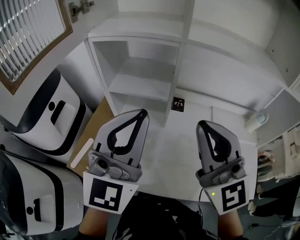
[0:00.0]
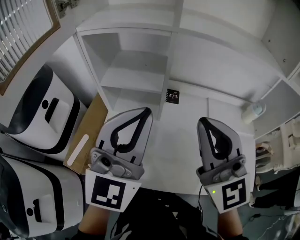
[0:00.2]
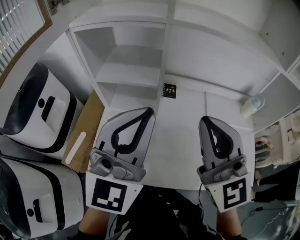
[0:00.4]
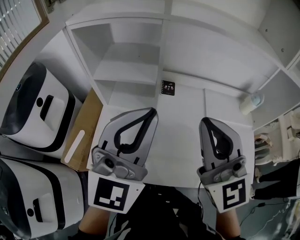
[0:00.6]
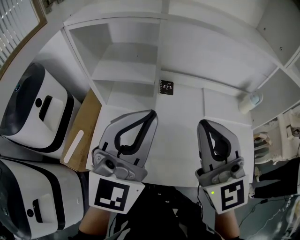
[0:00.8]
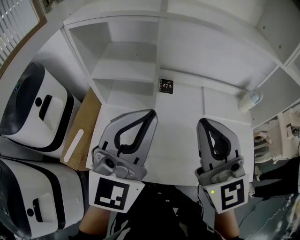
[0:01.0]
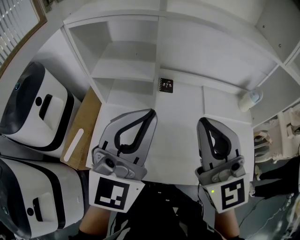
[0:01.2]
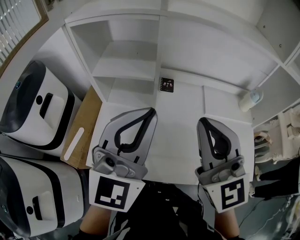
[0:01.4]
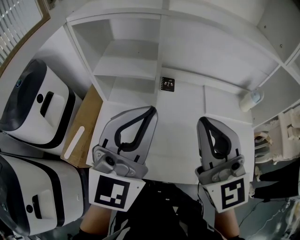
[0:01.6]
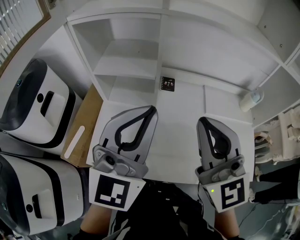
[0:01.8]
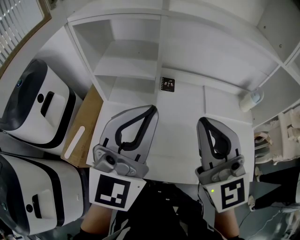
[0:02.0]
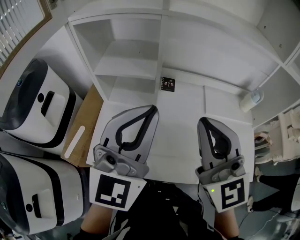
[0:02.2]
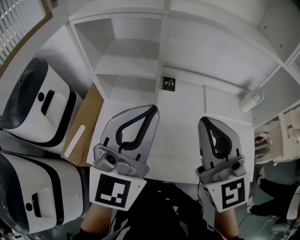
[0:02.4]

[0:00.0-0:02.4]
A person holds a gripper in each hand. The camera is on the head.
0:00.0 to 0:01.2: The right gripper changes place by approximately 5 cm. The left gripper is displaced to the right by about 5 cm.
0:01.2 to 0:02.4: The two grippers keep their place.

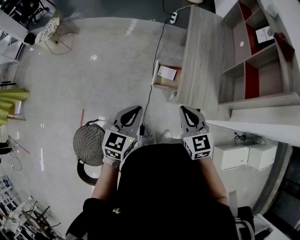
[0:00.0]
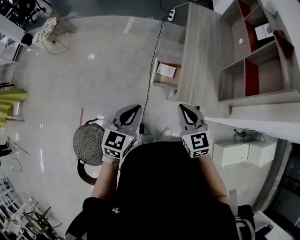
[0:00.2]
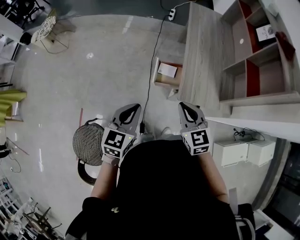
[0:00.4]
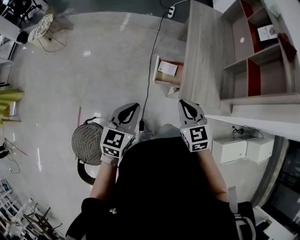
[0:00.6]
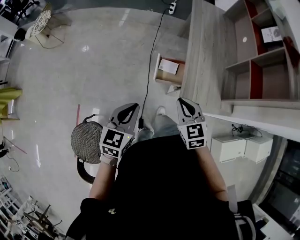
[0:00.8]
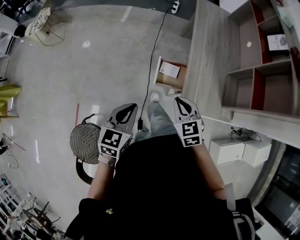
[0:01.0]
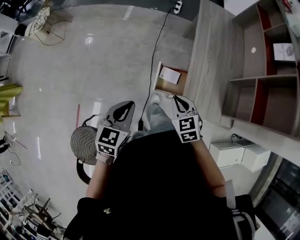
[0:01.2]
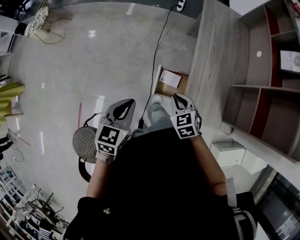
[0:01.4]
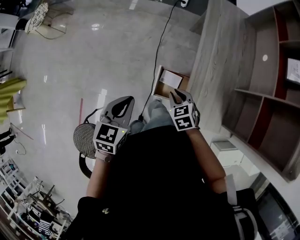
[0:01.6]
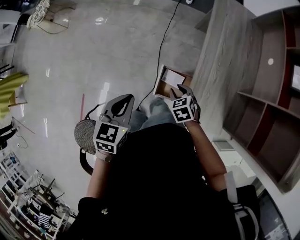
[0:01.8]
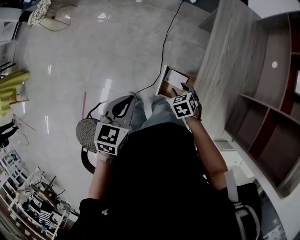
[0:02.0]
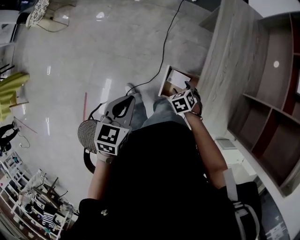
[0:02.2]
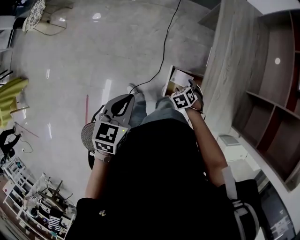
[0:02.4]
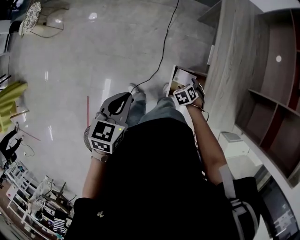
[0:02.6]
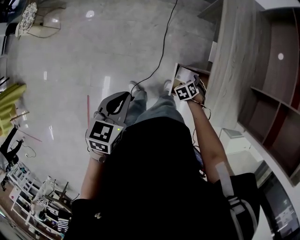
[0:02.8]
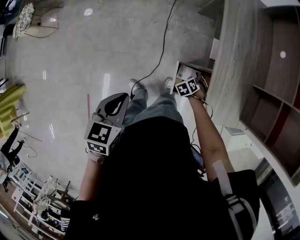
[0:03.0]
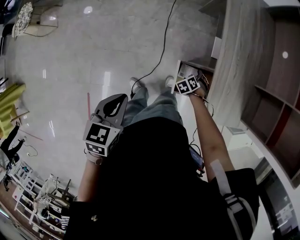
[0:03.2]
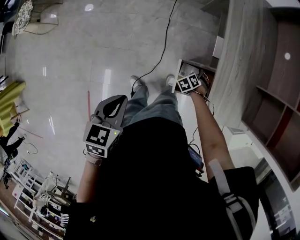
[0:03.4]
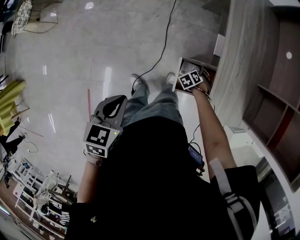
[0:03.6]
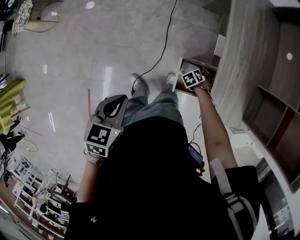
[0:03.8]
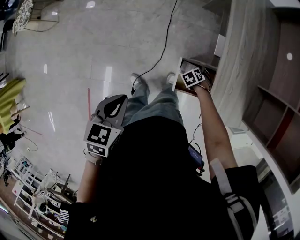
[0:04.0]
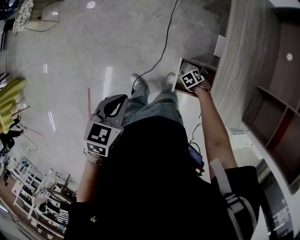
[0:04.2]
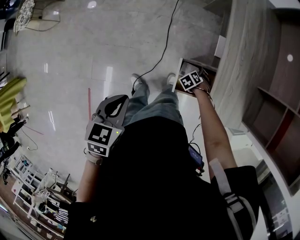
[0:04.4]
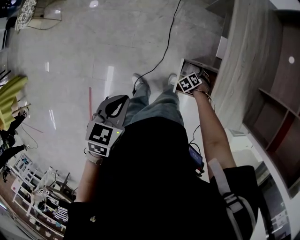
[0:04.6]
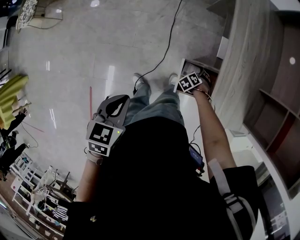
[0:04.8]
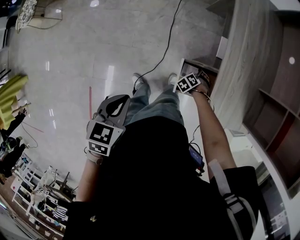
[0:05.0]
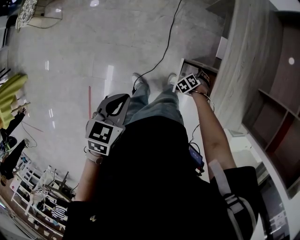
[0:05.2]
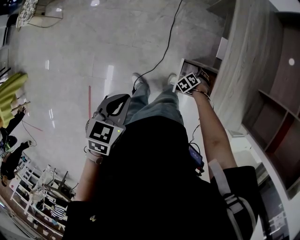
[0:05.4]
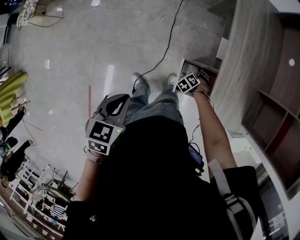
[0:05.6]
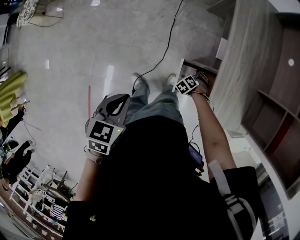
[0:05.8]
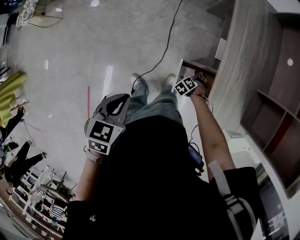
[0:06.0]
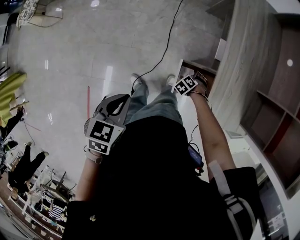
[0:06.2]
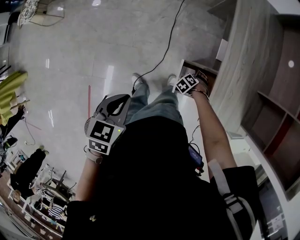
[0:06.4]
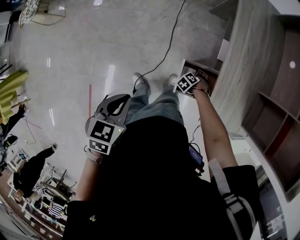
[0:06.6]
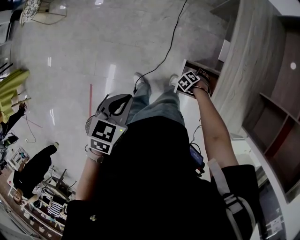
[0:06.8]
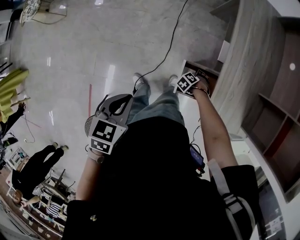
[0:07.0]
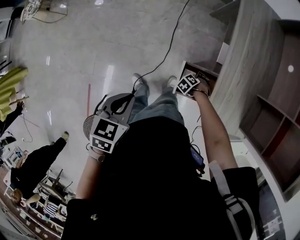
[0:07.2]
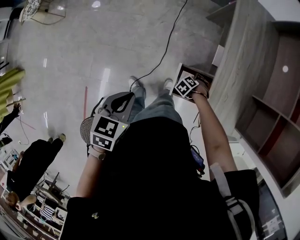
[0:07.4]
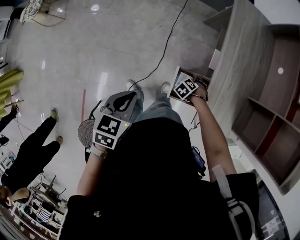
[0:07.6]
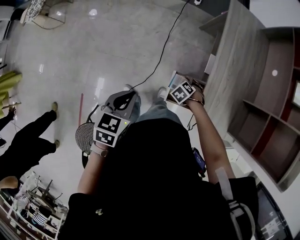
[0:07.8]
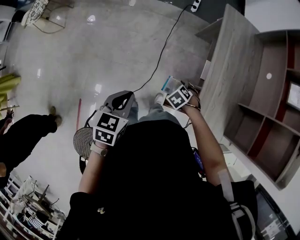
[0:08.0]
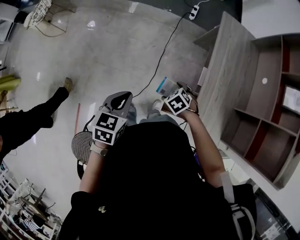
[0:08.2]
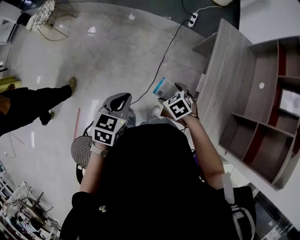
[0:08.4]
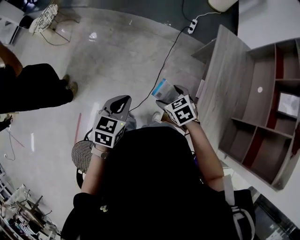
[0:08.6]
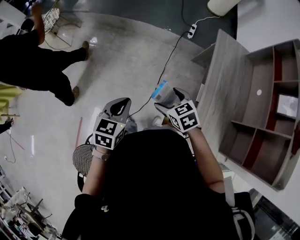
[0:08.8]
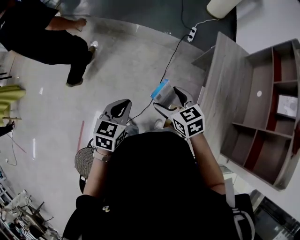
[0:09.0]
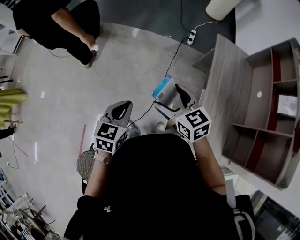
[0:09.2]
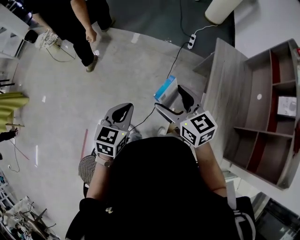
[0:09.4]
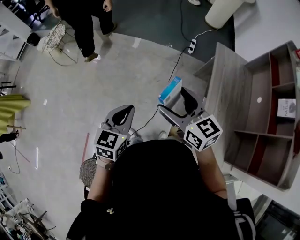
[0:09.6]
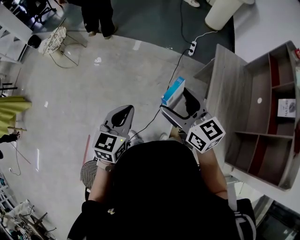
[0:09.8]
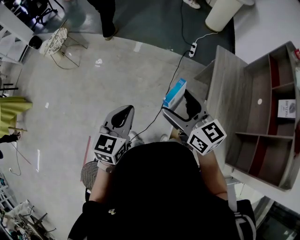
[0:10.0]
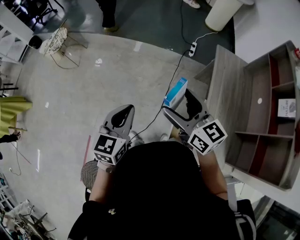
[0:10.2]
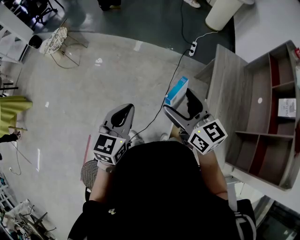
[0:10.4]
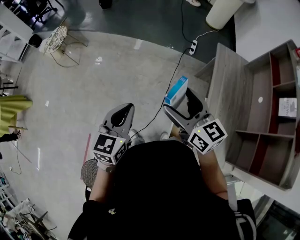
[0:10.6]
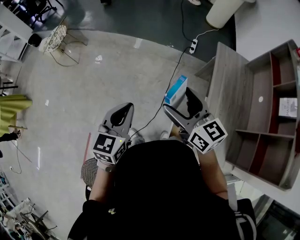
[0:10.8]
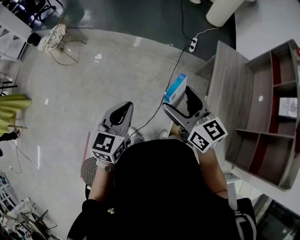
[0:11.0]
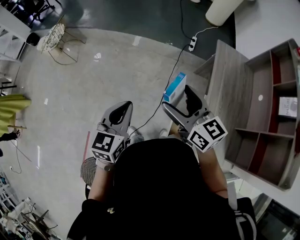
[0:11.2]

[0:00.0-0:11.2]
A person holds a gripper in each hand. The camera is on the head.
0:00.0 to 0:01.6: The left gripper travels forward by approximately 25 cm; the right gripper is displaced forward and downward by roughly 35 cm, and tips its fingers downward by about 30 degrees.
0:01.6 to 0:03.2: The right gripper moves downward, about 25 cm, swivels about 40 degrees, and opens up. The left gripper ends up about 15 cm from where it was.
0:03.2 to 0:04.8: The grippers make only small movements.
0:04.8 to 0:06.4: The grippers move only a little.
0:06.4 to 0:08.0: The right gripper is displaced upward by some 20 cm.
0:08.0 to 0:09.6: The left gripper moves upward, approximately 15 cm, while the right gripper moves upward, roughly 40 cm, and tilts its fingers approximately 70 degrees upward.
0:09.6 to 0:11.2: There are only small adjustments of the grippers.

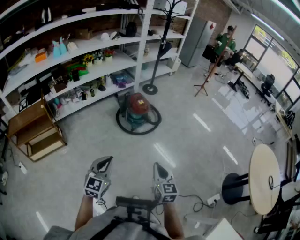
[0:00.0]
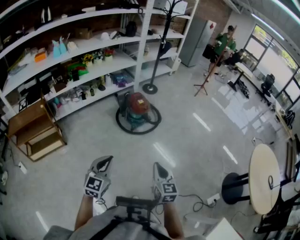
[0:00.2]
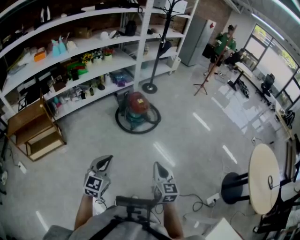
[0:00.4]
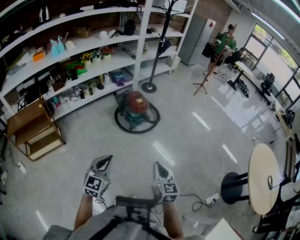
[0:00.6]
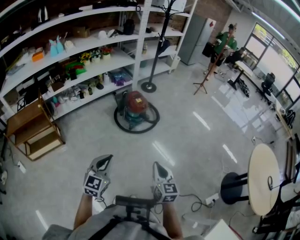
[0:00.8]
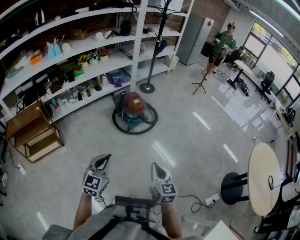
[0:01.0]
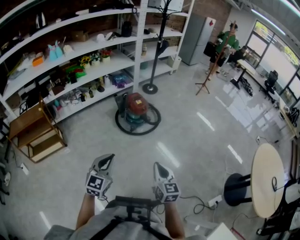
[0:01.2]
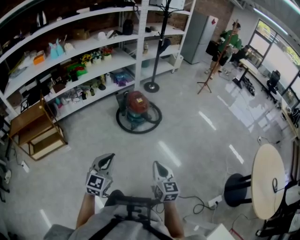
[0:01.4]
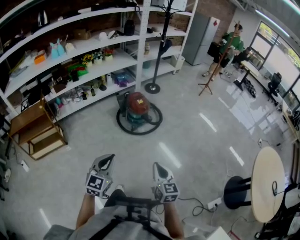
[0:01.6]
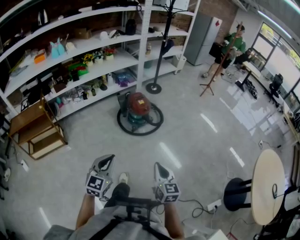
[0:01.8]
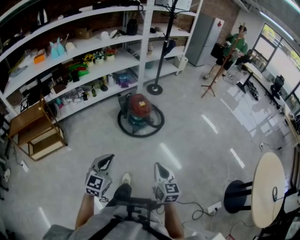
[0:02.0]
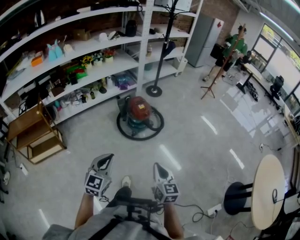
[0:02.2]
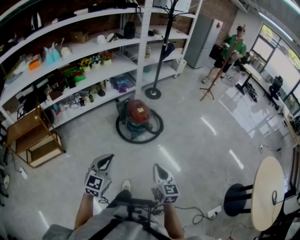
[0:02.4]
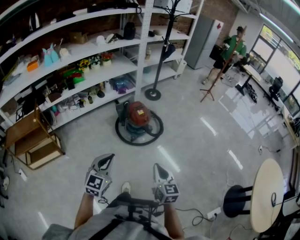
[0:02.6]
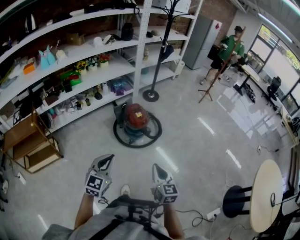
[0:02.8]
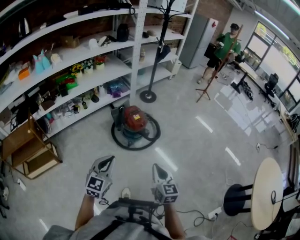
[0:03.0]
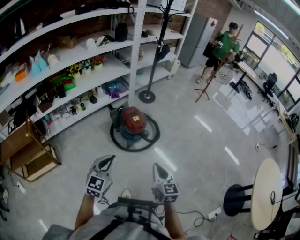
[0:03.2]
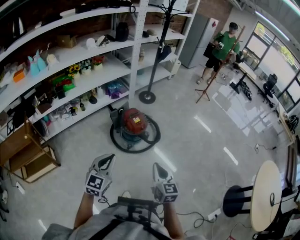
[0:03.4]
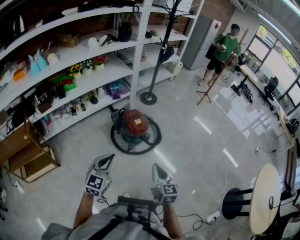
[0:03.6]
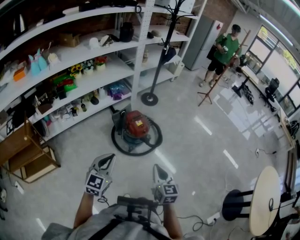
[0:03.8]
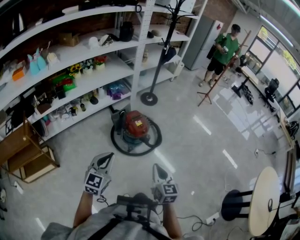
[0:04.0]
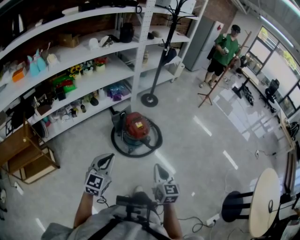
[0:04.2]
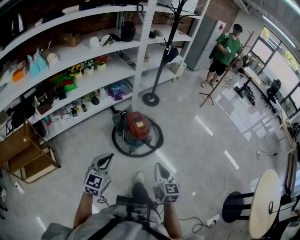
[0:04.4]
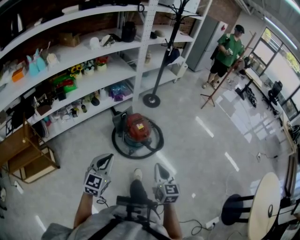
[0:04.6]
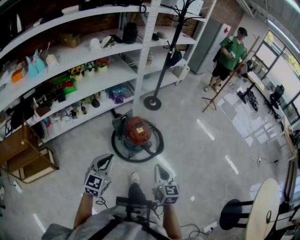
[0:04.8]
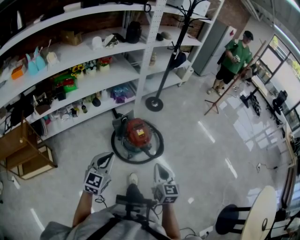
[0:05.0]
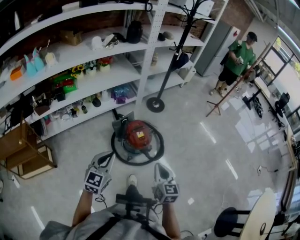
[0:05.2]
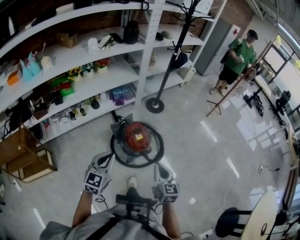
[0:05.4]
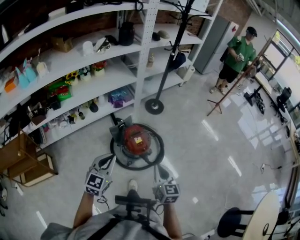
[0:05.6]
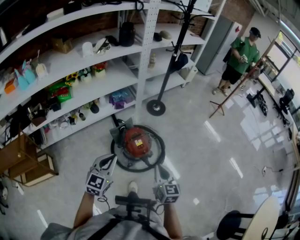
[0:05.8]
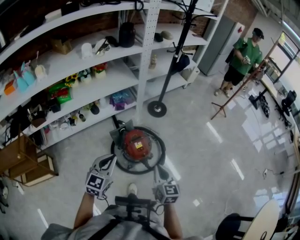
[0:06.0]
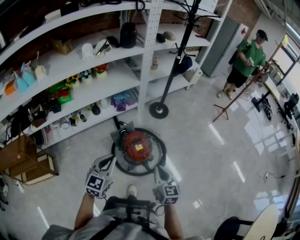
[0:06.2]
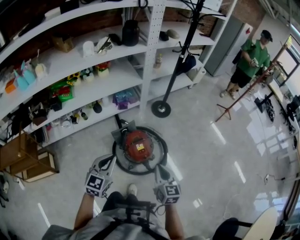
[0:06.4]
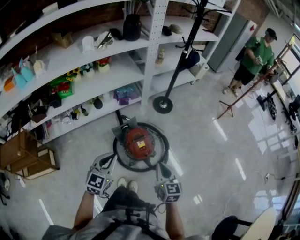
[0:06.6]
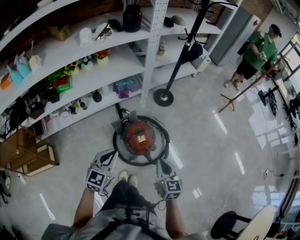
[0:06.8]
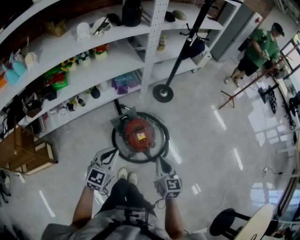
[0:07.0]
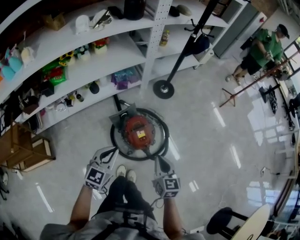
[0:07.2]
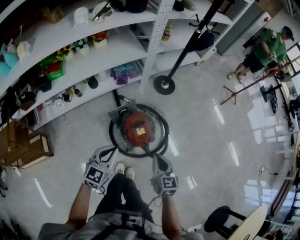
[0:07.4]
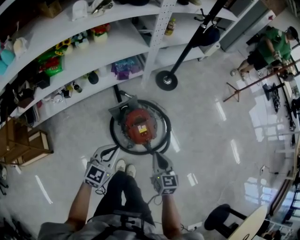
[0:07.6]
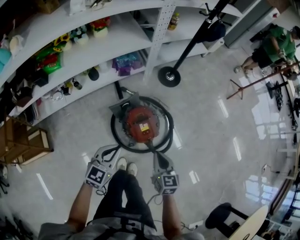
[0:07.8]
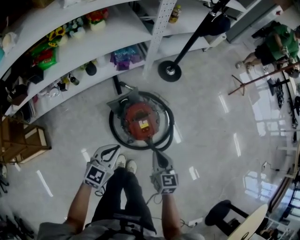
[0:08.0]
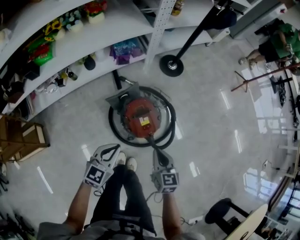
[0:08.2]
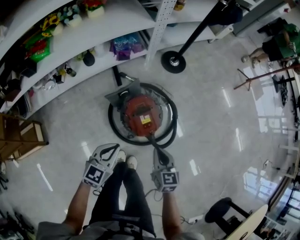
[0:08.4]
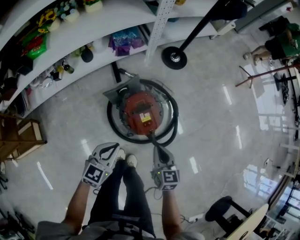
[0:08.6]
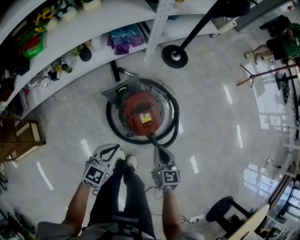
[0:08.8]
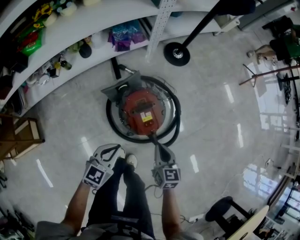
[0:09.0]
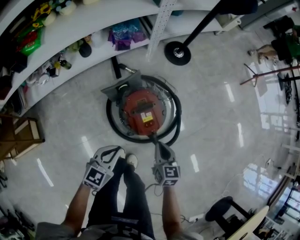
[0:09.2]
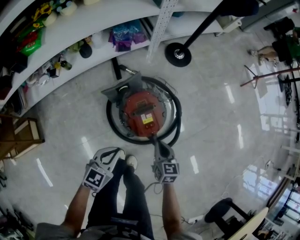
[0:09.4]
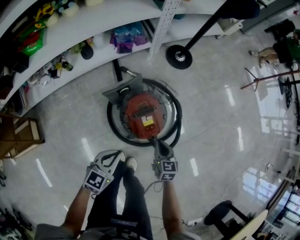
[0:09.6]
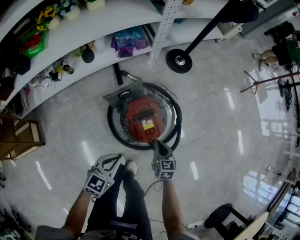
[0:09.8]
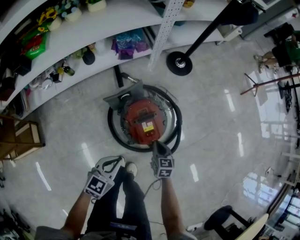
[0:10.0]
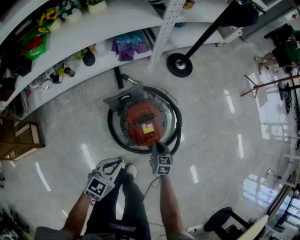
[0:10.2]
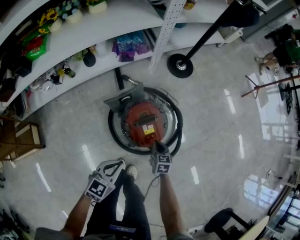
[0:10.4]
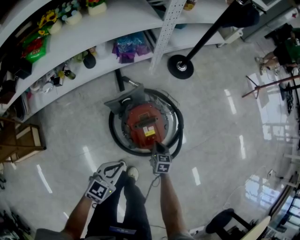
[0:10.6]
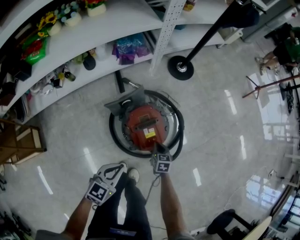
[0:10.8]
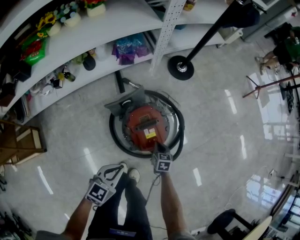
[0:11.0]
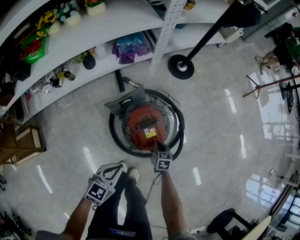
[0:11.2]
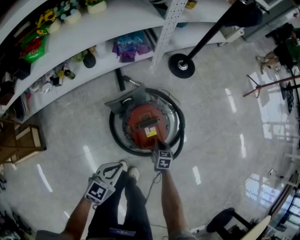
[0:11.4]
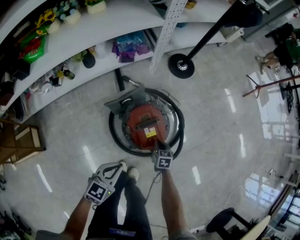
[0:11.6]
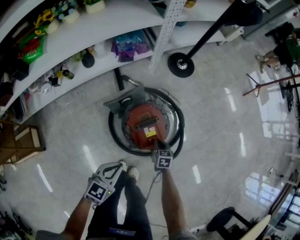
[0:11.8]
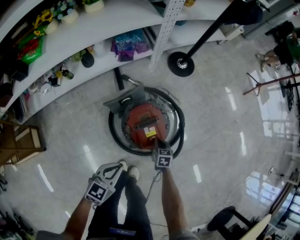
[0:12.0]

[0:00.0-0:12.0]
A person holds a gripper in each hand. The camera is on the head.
0:00.0 to 0:01.6: The grippers both shift to the right by approximately 5 cm.
0:01.6 to 0:03.0: The grippers both shift forward by roughly 20 cm.
0:03.0 to 0:04.4: The right gripper goes about 15 cm forward; the left gripper is displaced forward and to the left by approximately 15 cm.
0:04.4 to 0:06.0: The two grippers go approximately 25 cm forward.
0:06.0 to 0:07.6: The grippers both shift downward and forward by about 15 cm.
0:07.6 to 0:09.0: Both grippers travel together downward, roughly 20 cm.
0:09.0 to 0:10.4: The right gripper shifts about 15 cm downward and forward.
0:10.4 to 0:12.0: The right gripper travels downward by about 5 cm.
